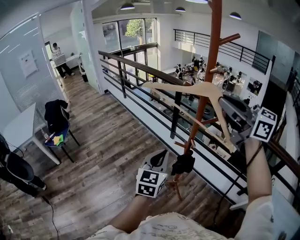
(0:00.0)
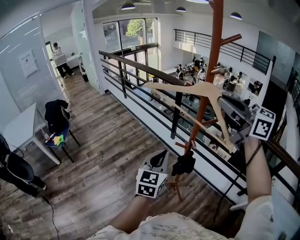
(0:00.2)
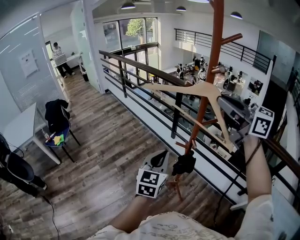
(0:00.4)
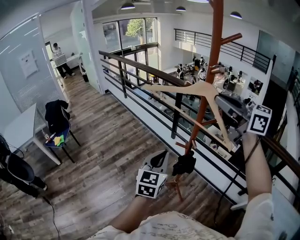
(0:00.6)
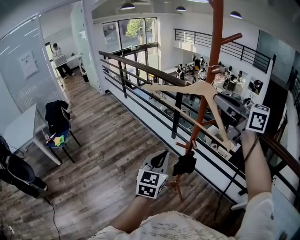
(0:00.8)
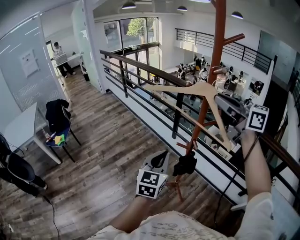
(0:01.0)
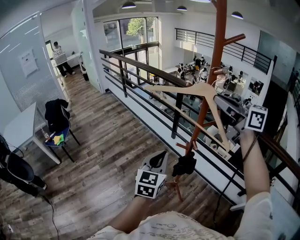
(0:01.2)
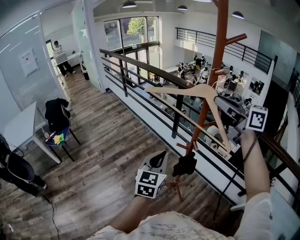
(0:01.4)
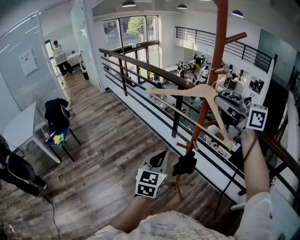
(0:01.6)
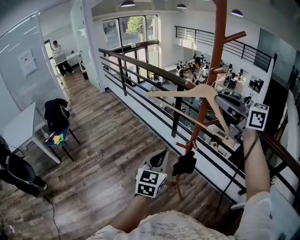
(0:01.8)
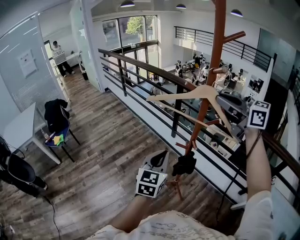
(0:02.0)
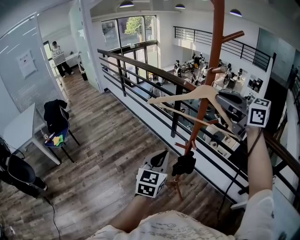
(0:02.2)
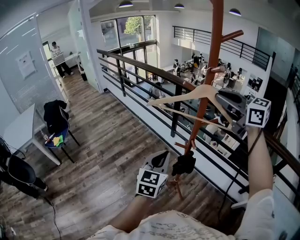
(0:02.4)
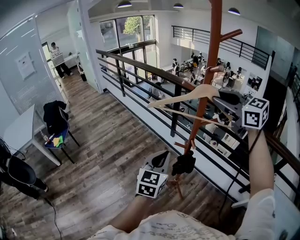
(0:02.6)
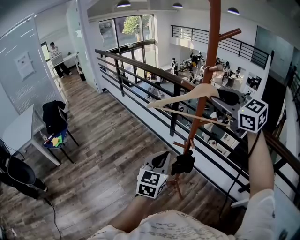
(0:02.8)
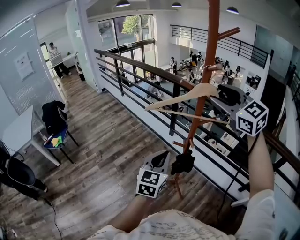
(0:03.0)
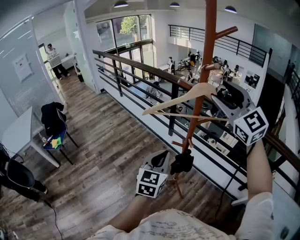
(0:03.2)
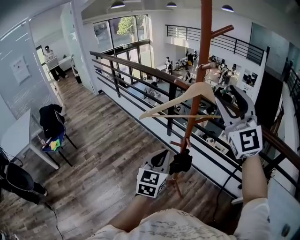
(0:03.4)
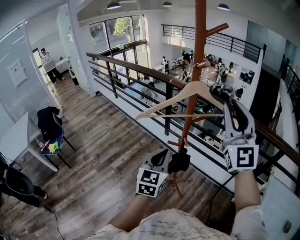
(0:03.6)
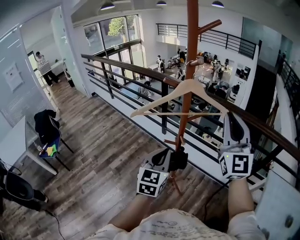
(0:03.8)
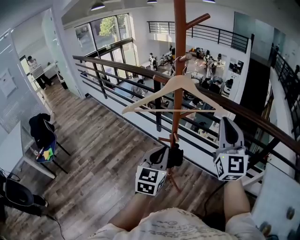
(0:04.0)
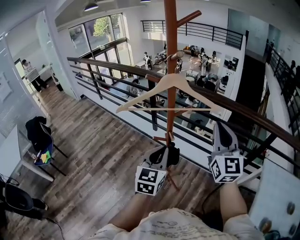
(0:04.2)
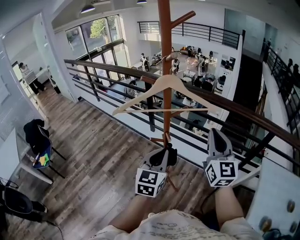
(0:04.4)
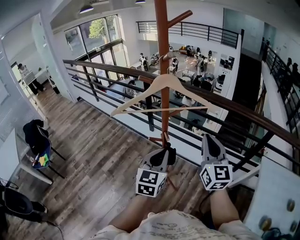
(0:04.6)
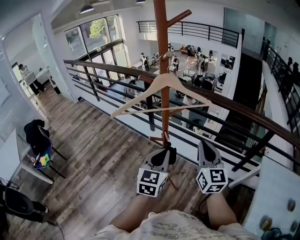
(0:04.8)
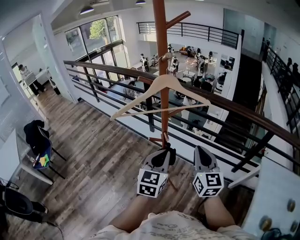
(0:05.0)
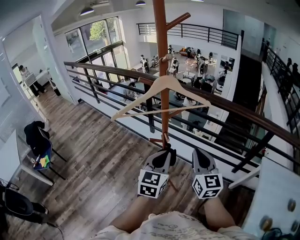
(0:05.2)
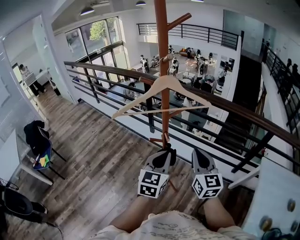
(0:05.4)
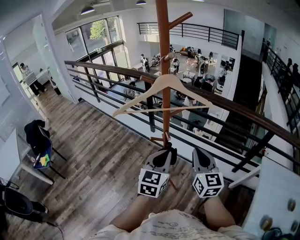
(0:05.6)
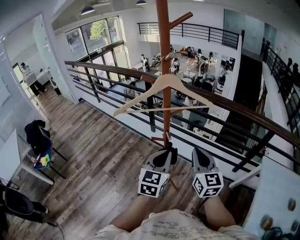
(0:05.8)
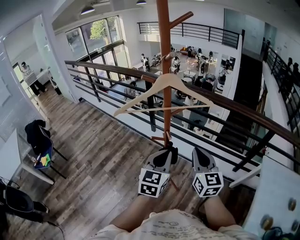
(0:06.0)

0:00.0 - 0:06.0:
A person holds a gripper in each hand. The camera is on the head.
0:00.0 - 0:01.6: The right gripper moves forward, about 5 cm.
0:01.6 - 0:03.0: The right gripper changes its angle by about 40 degrees, and opens its fingers.
0:03.0 - 0:04.4: The left gripper shifts by some 10 cm. Meanwhile the right gripper ends up about 20 cm from where it was, turns by some 50 degrees, and closes up.
0:04.4 - 0:06.0: The right gripper heads downward, covering some 10 cm.

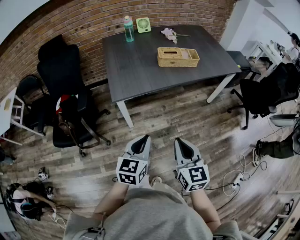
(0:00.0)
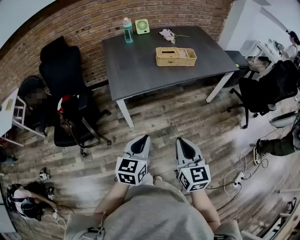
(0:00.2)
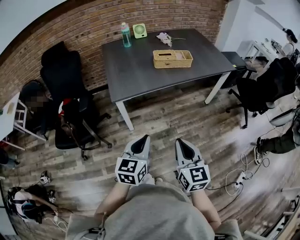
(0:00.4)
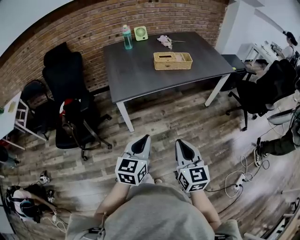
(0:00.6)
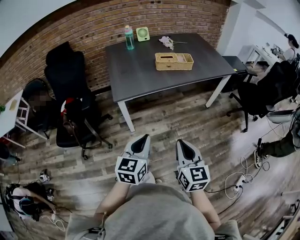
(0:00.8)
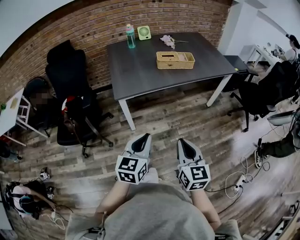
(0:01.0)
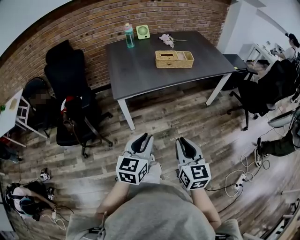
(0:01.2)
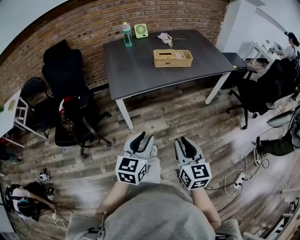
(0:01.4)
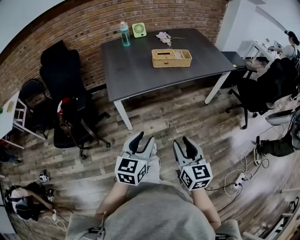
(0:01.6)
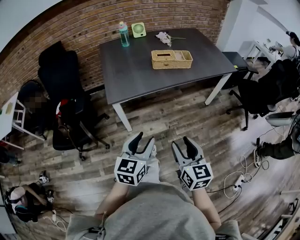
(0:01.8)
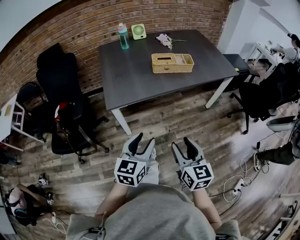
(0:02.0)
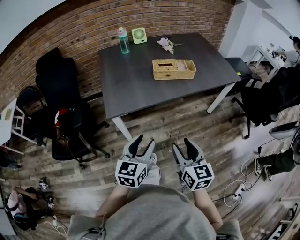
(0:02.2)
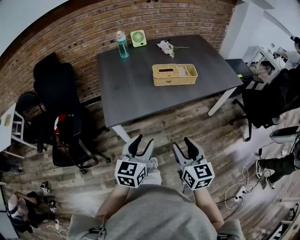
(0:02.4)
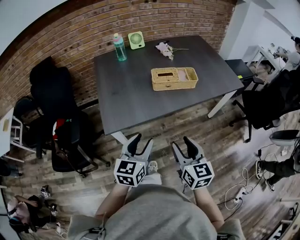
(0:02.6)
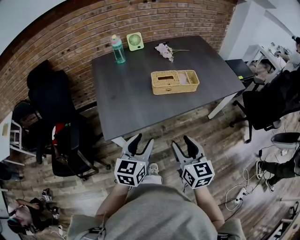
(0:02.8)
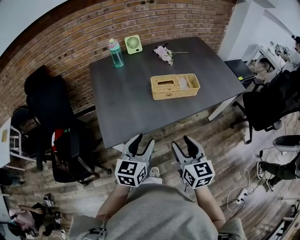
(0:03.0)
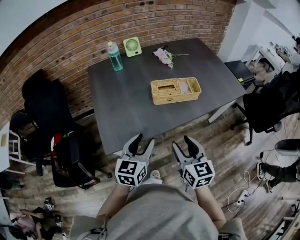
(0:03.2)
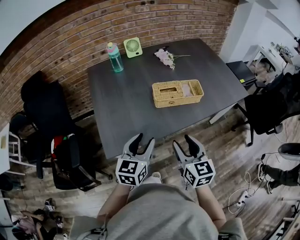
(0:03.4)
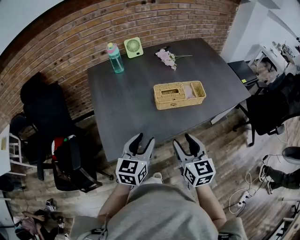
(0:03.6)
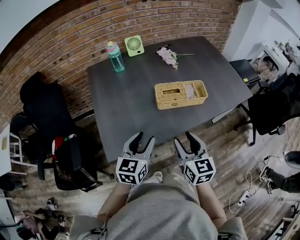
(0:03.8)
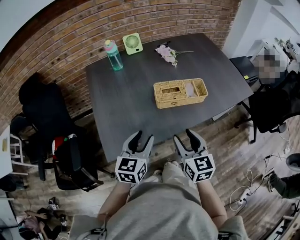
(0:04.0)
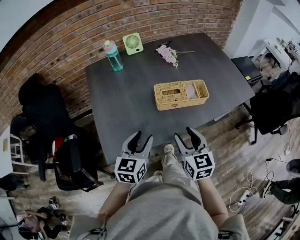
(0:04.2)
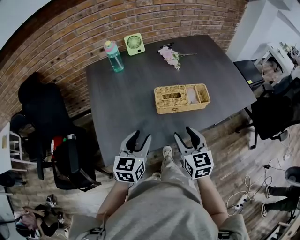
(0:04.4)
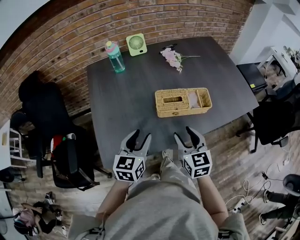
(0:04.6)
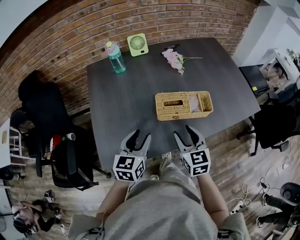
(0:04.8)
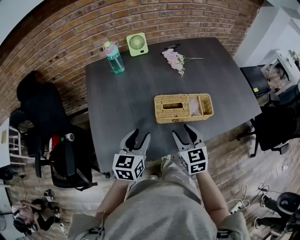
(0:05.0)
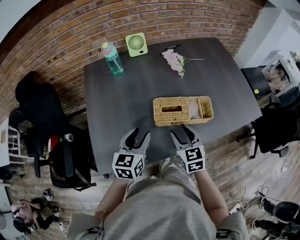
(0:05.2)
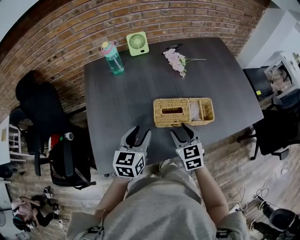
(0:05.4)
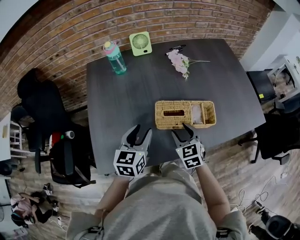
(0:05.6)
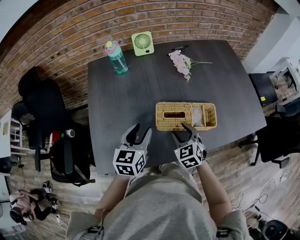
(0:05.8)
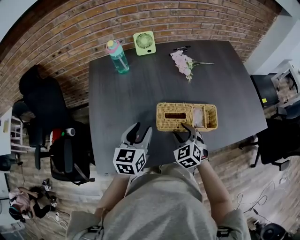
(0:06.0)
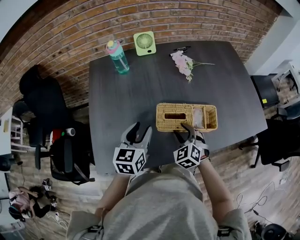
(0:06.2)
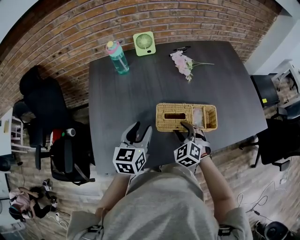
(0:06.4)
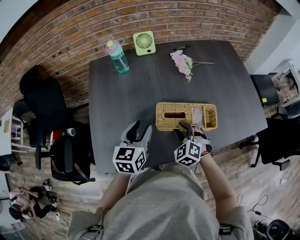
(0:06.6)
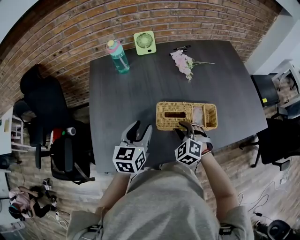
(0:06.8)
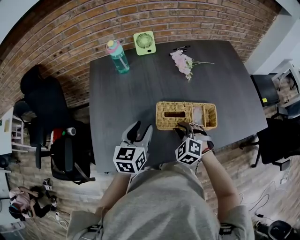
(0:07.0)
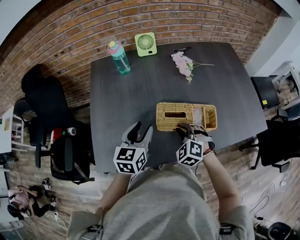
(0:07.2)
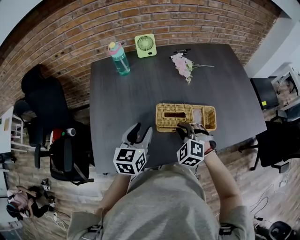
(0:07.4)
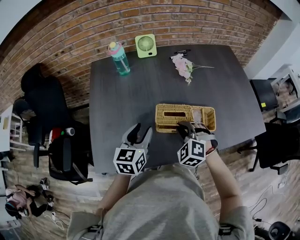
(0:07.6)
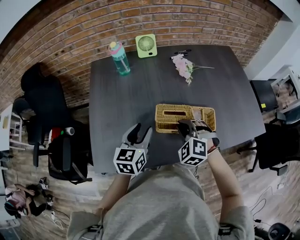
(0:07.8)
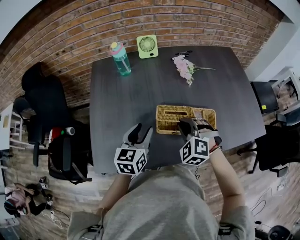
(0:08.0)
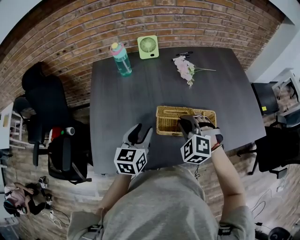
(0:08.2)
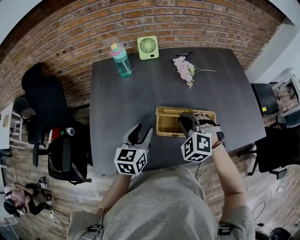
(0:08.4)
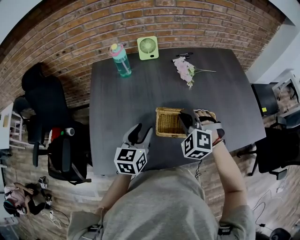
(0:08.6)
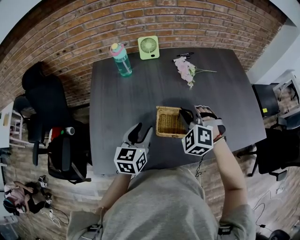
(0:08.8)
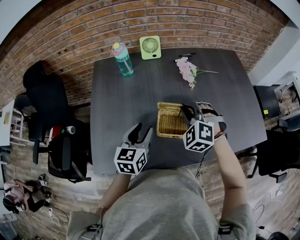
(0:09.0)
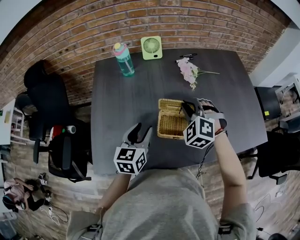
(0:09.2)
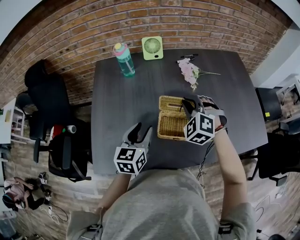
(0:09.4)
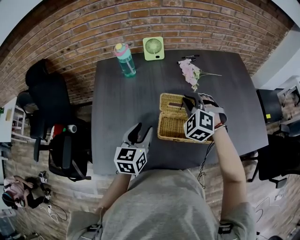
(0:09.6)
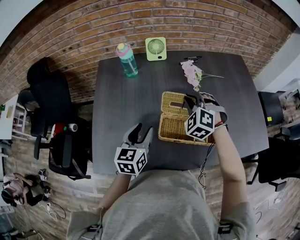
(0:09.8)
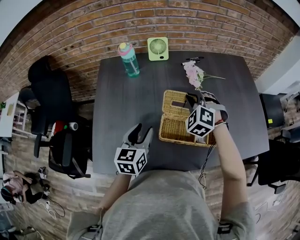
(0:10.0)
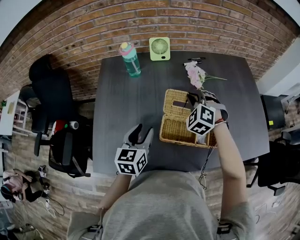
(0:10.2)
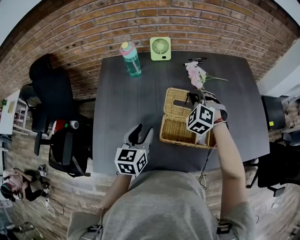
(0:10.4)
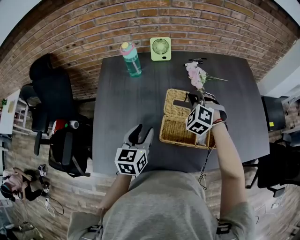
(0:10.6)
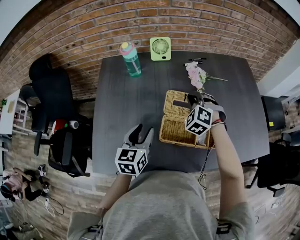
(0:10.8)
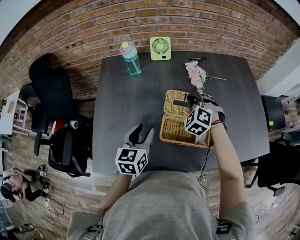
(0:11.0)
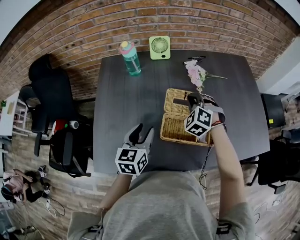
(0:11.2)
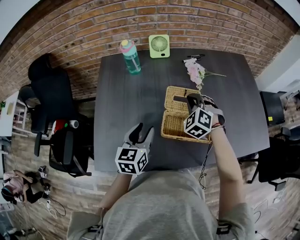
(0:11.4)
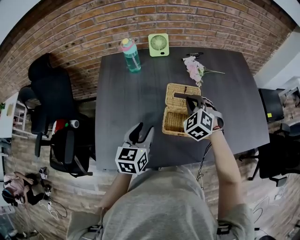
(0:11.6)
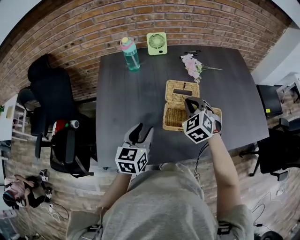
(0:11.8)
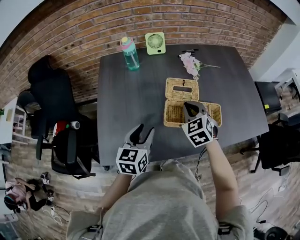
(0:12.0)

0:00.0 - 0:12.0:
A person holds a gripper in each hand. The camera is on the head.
0:00.0 - 0:01.6: The right gripper moves to the right, some 5 cm, and opens up, while the left gripper changes place by about 5 cm, and opens its fingers.
0:01.6 - 0:03.0: The grippers both shift forward by approximately 30 cm.
0:03.0 - 0:04.4: The two grippers go some 15 cm forward.
0:04.4 - 0:06.0: The right gripper travels forward and downward by roughly 20 cm, and changes its angle by some 40 degrees, while the left gripper travels forward by approximately 15 cm.
0:06.0 - 0:07.6: The right gripper swivels roughly 30 degrees, and closes its fingers.
0:07.6 - 0:09.0: The right gripper is displaced forward and upward by approximately 10 cm.
0:09.0 - 0:10.4: The right gripper heads forward, covering some 10 cm.
0:10.4 - 0:12.0: The left gripper heads backward, covering about 10 cm. Meanwhile the right gripper goes about 15 cm backward, and rotates some 30 degrees.

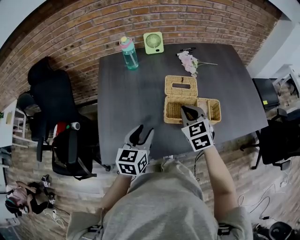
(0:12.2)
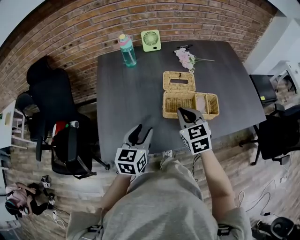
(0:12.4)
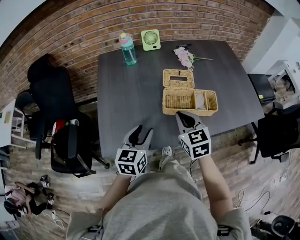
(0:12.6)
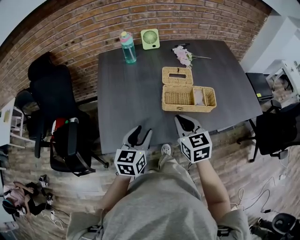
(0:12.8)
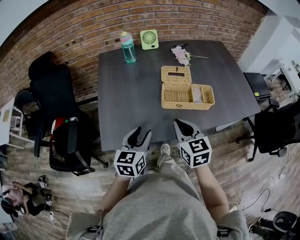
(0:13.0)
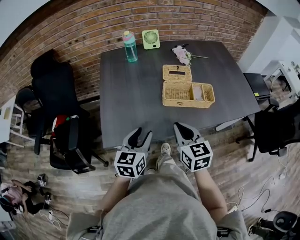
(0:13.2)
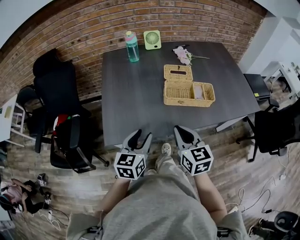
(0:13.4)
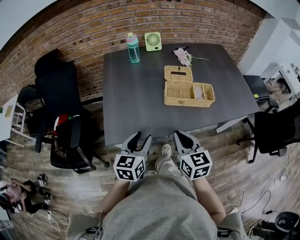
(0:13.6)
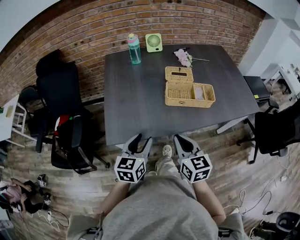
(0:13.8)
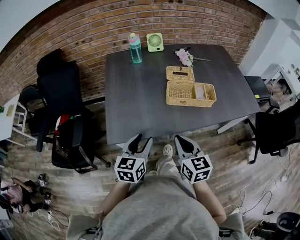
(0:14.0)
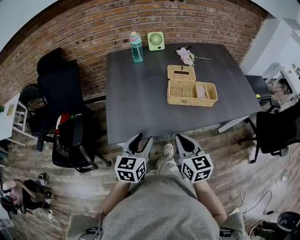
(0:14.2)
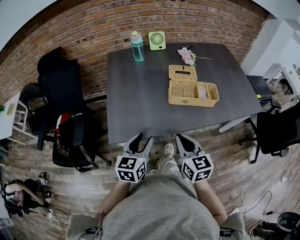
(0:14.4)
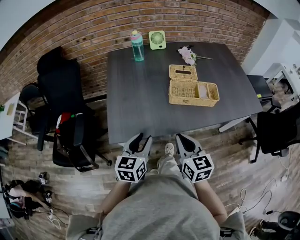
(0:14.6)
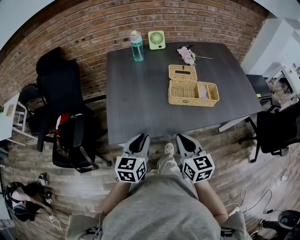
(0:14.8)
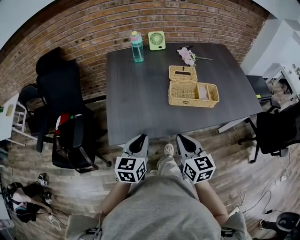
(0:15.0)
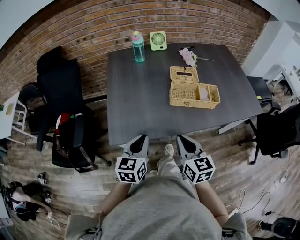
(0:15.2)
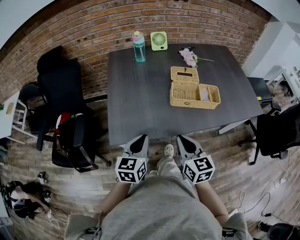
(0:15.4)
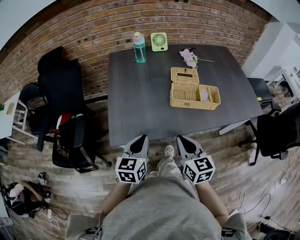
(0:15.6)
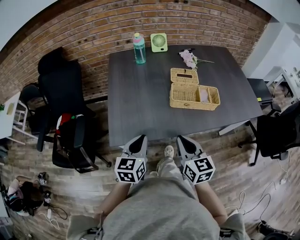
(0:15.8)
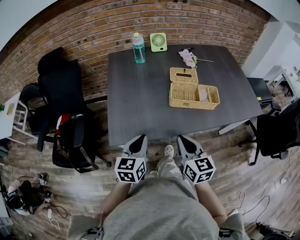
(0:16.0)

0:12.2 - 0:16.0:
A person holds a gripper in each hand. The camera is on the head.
0:12.2 - 0:13.4: The two grippers go roughly 20 cm backward. The right gripper rotates some 30 degrees.
0:13.4 - 0:14.8: The left gripper closes.
0:14.8 - 0:16.0: Both grippers stay put.

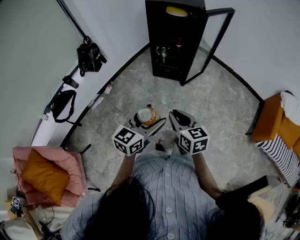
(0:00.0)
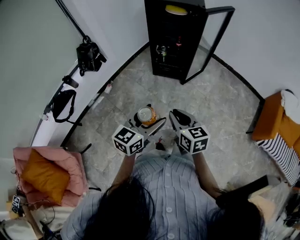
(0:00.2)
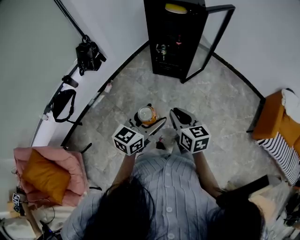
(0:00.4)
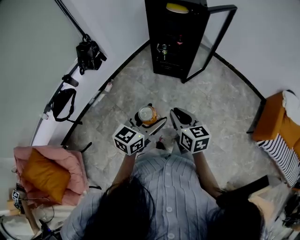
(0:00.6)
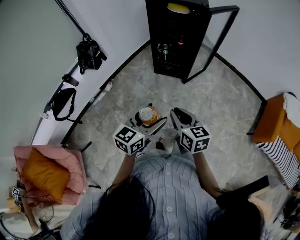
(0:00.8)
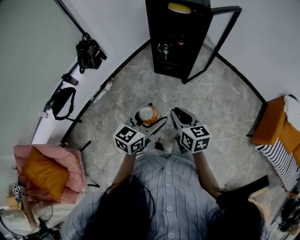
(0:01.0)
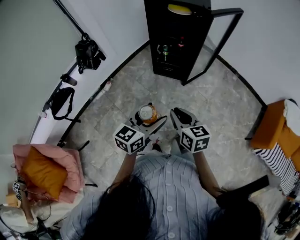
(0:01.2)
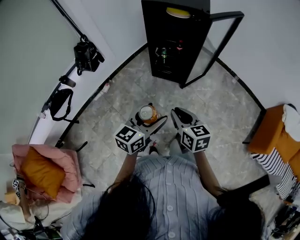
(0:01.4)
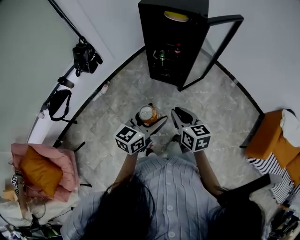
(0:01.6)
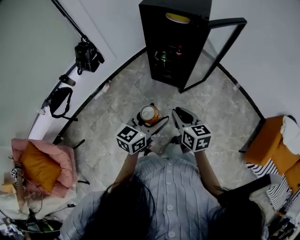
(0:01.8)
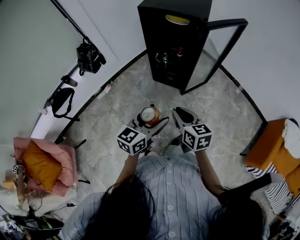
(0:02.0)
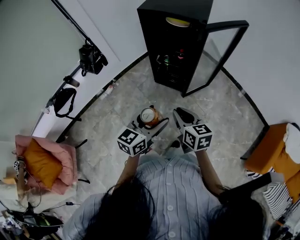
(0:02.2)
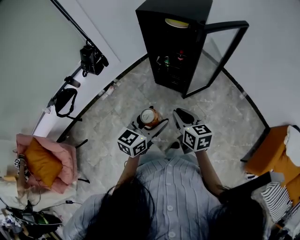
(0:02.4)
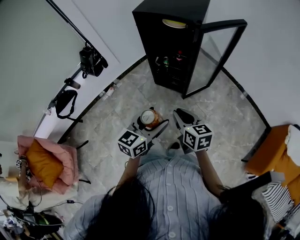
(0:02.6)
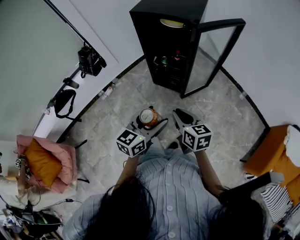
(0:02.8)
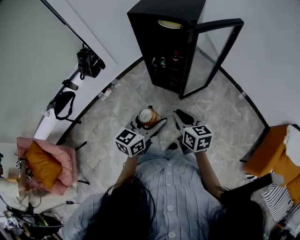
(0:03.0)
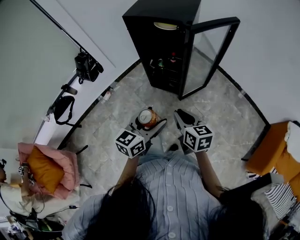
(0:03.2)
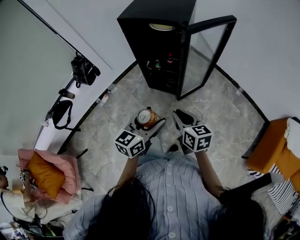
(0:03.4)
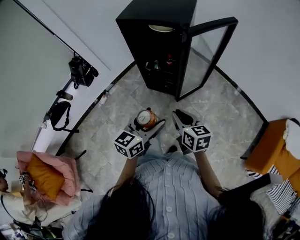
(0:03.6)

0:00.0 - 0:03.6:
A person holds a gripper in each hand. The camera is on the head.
0:00.0 - 0:01.8: Both grippers travel together forward and to the right, approximately 20 cm.
0:01.8 - 0:03.6: The two grippers go some 10 cm forward and to the right.
